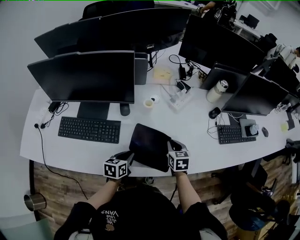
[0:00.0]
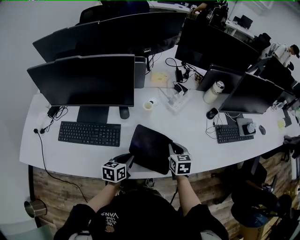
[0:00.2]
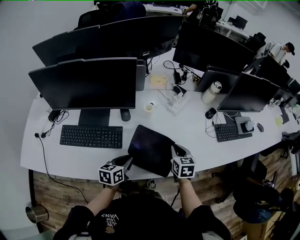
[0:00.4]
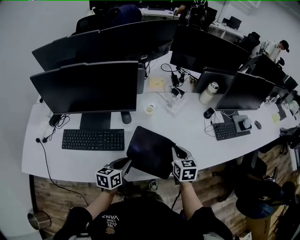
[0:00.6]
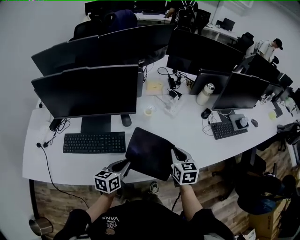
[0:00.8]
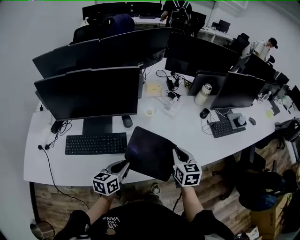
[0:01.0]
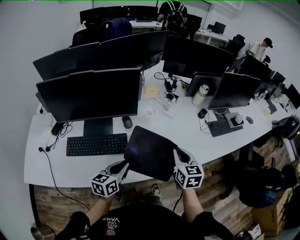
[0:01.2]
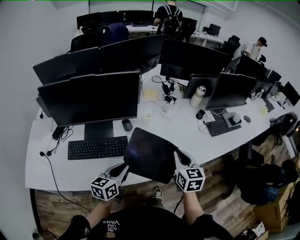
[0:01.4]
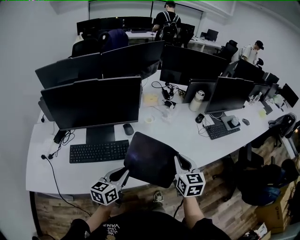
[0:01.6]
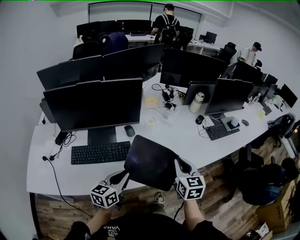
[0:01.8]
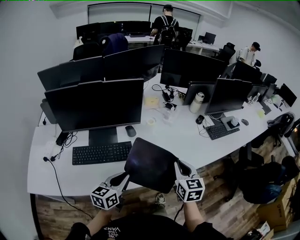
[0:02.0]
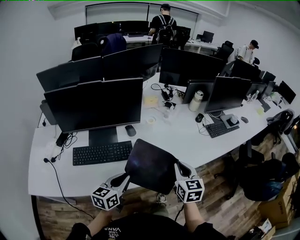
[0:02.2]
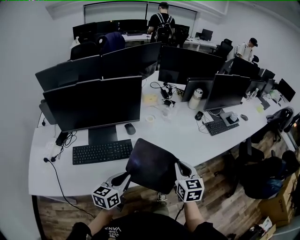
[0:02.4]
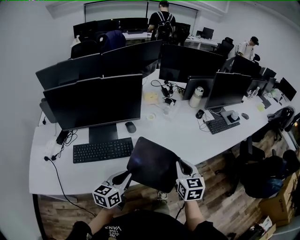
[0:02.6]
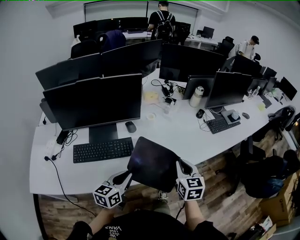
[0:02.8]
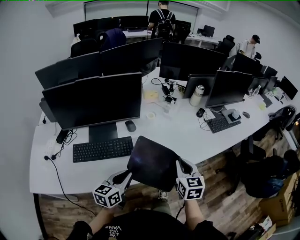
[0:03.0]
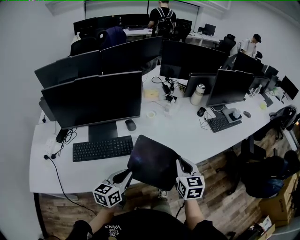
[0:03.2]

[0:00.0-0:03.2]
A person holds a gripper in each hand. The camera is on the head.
0:00.0 to 0:01.6: The left gripper moves upward, backward and to the left, approximately 20 cm, and swivels approximately 30 degrees. The right gripper is displaced upward and backward by roughly 25 cm, and changes its angle by about 30 degrees.
0:01.6 to 0:03.2: The grippers make only small movements.

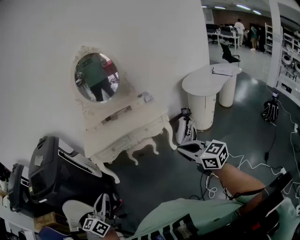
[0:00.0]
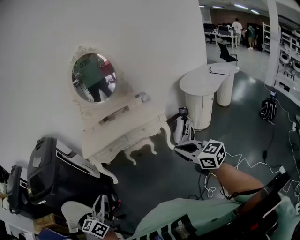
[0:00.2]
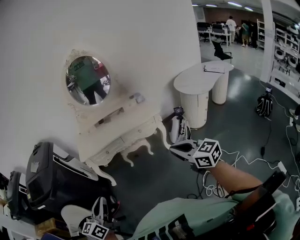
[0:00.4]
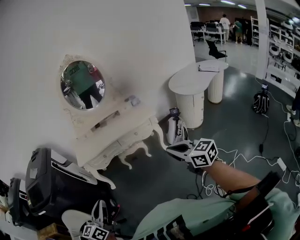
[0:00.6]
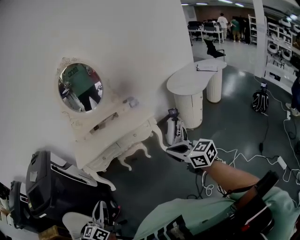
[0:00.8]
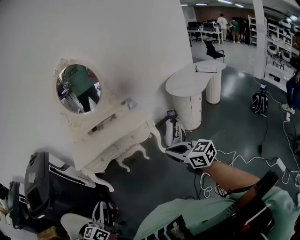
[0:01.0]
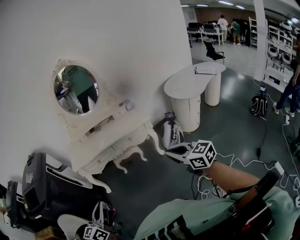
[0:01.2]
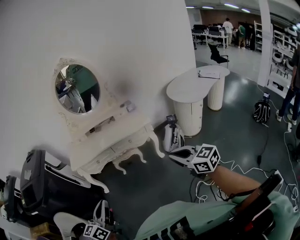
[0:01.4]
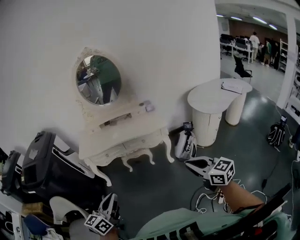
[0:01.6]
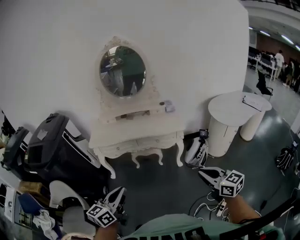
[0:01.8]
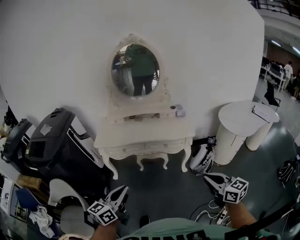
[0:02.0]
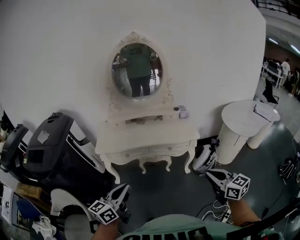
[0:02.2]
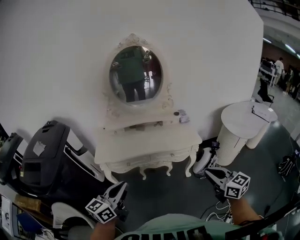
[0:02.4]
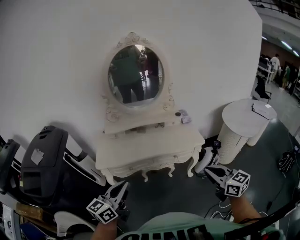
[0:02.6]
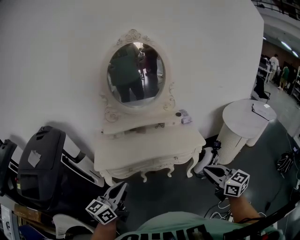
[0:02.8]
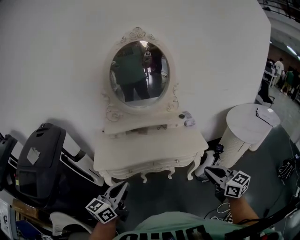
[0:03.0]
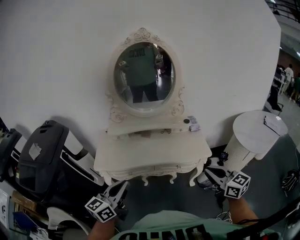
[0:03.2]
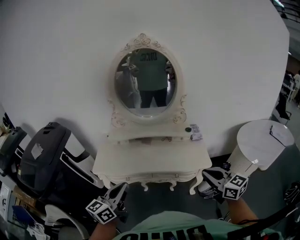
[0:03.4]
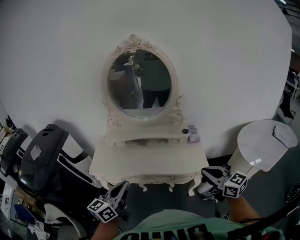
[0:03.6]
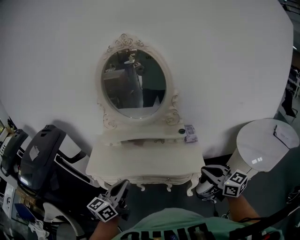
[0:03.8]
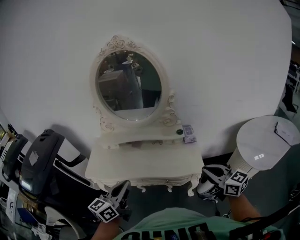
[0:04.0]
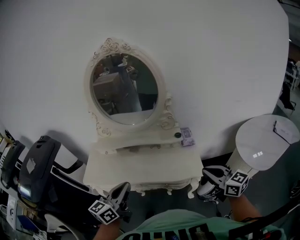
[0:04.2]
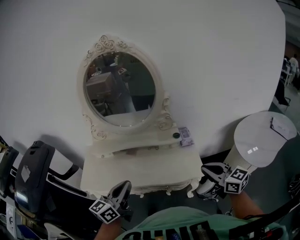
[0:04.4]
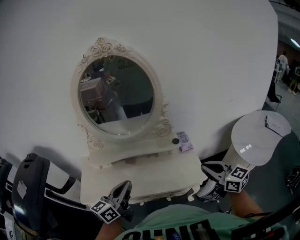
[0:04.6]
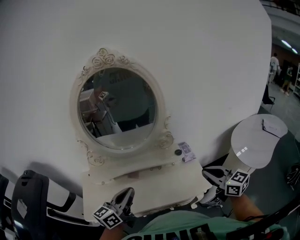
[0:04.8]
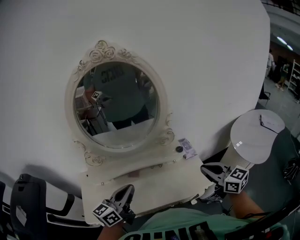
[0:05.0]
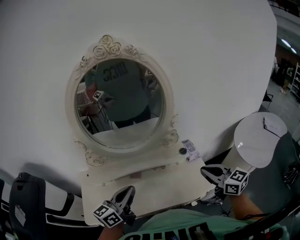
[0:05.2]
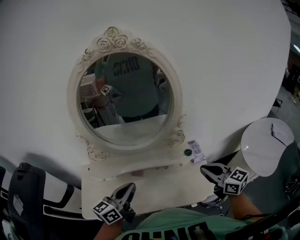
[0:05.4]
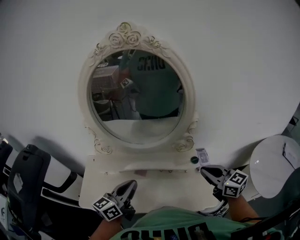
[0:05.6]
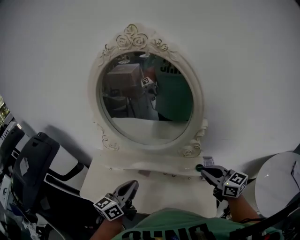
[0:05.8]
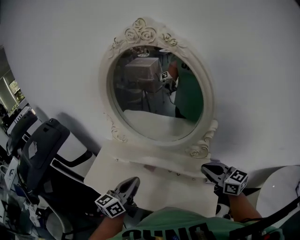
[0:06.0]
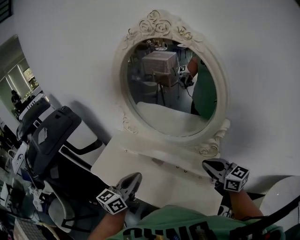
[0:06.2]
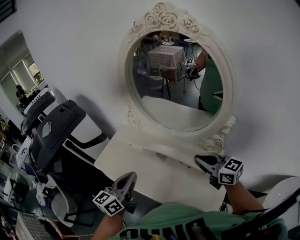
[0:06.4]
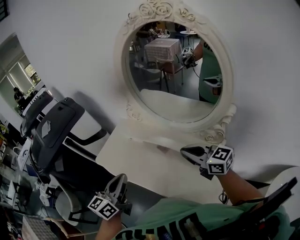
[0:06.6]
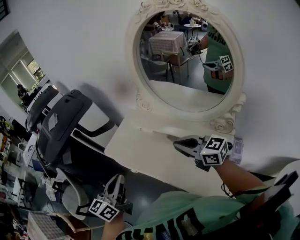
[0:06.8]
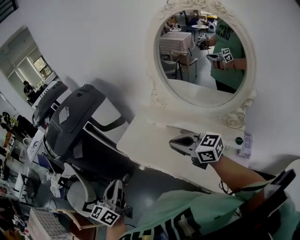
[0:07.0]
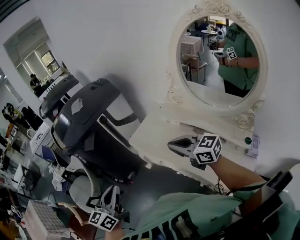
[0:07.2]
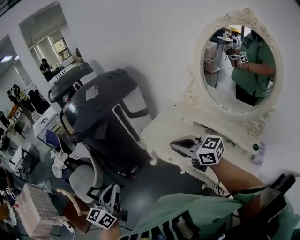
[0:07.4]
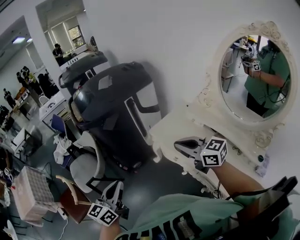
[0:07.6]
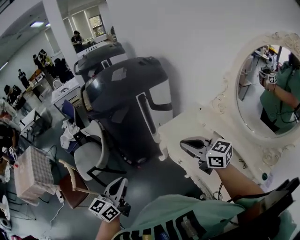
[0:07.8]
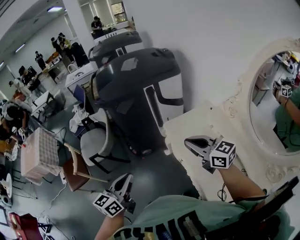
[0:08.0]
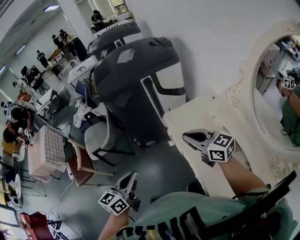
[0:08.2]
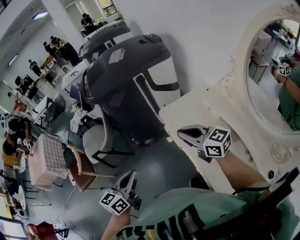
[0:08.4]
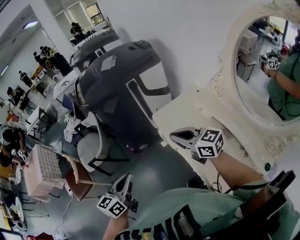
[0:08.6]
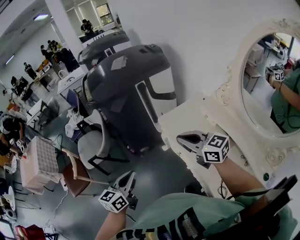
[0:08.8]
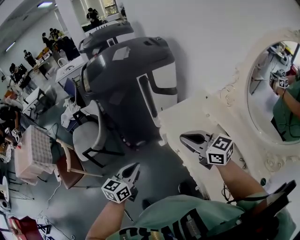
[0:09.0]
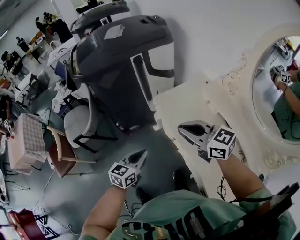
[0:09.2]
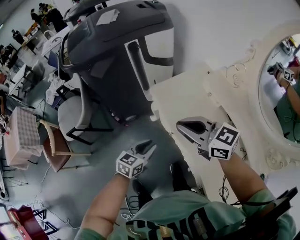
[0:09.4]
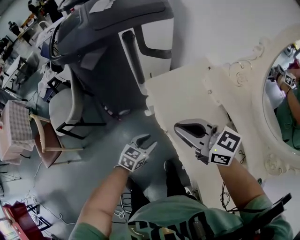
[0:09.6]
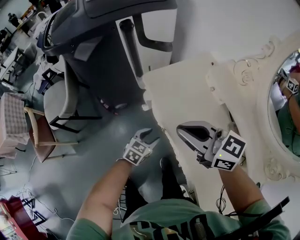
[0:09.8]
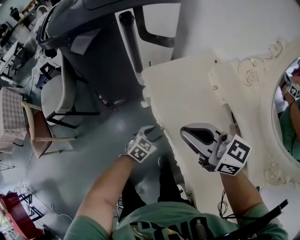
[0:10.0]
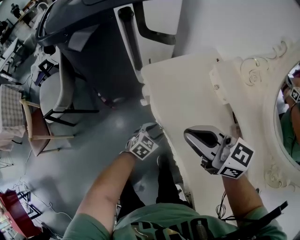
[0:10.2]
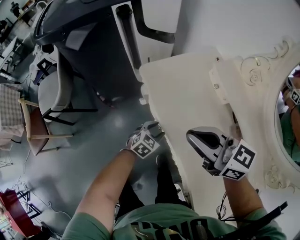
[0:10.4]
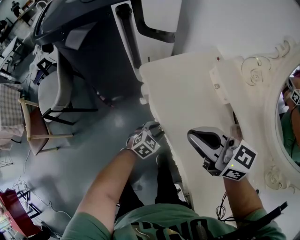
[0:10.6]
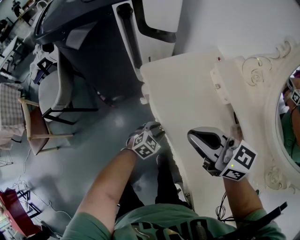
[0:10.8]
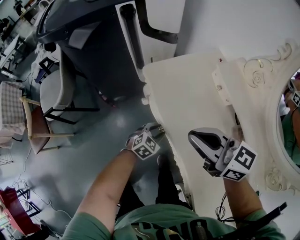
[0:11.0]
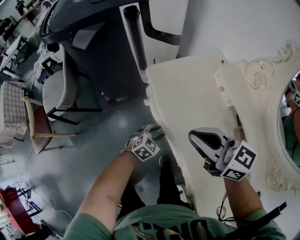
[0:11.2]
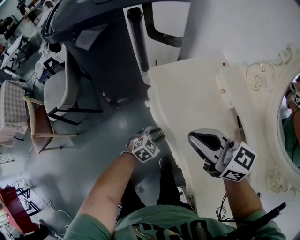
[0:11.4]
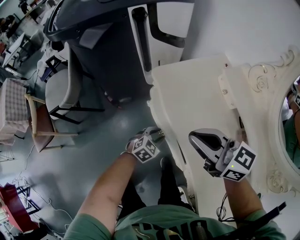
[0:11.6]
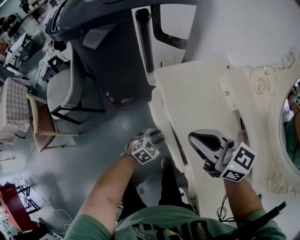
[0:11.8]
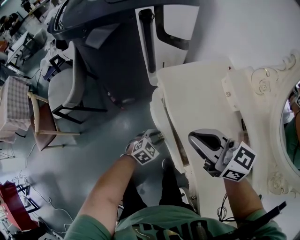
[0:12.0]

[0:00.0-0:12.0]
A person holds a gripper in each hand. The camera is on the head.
0:00.0 to 0:01.6: Both grippers travel together to the right, about 15 cm.
0:01.6 to 0:03.0: The grippers both shift forward and to the left by roughly 35 cm.
0:03.0 to 0:04.4: The left gripper is displaced to the right and forward by about 30 cm, while the right gripper travels forward and to the right by some 30 cm.
0:04.4 to 0:06.0: The right gripper ends up roughly 35 cm from where it was, and turns by roughly 20 degrees, while the left gripper shifts by approximately 20 cm.
0:06.0 to 0:07.6: Both grippers are carried roughly 50 cm. The right gripper swivels about 50 degrees. Meanwhile the left gripper turns by some 50 degrees.
0:07.6 to 0:09.0: The left gripper travels downward and to the right by some 15 cm; the right gripper is displaced downward by roughly 5 cm.
0:09.0 to 0:10.4: The left gripper travels downward and to the right by approximately 40 cm, turns by approximately 40 degrees, and opens its fingers. Meanwhile the right gripper goes some 15 cm downward and to the right.
0:10.4 to 0:12.0: The left gripper goes some 5 cm to the left.

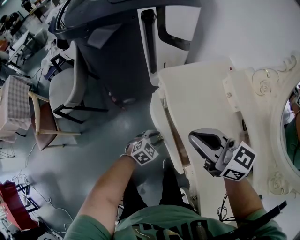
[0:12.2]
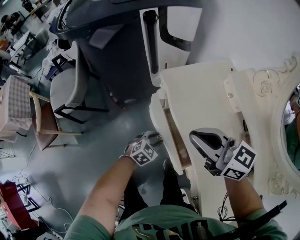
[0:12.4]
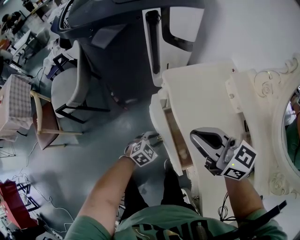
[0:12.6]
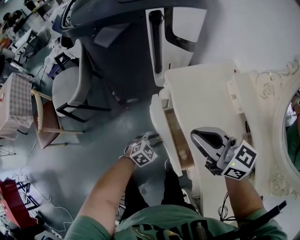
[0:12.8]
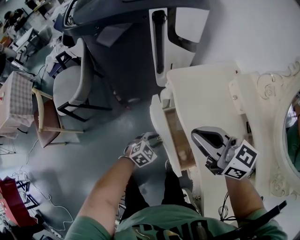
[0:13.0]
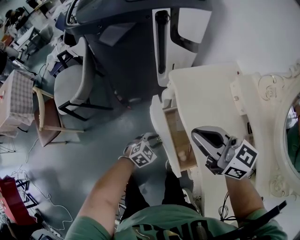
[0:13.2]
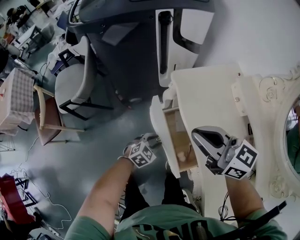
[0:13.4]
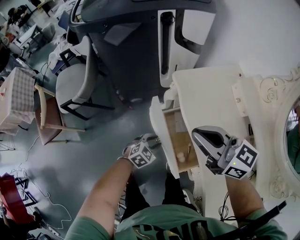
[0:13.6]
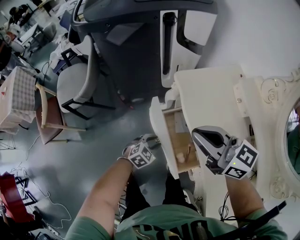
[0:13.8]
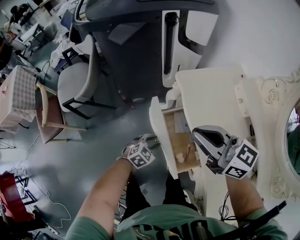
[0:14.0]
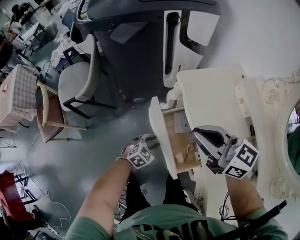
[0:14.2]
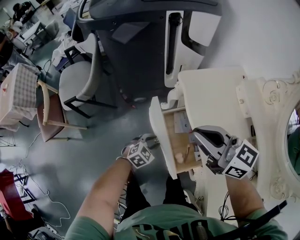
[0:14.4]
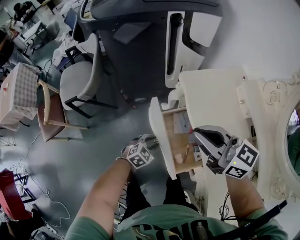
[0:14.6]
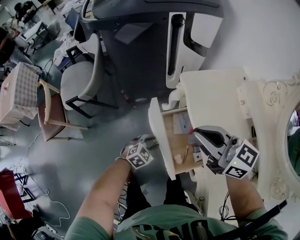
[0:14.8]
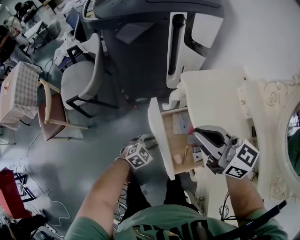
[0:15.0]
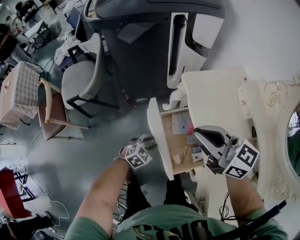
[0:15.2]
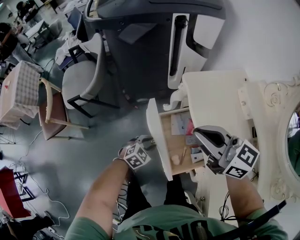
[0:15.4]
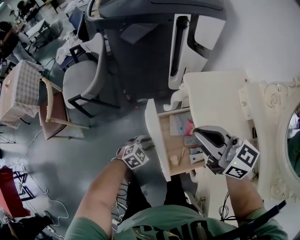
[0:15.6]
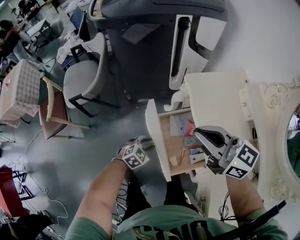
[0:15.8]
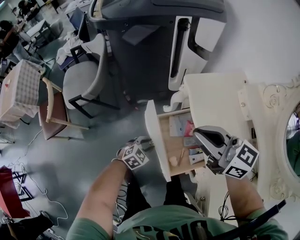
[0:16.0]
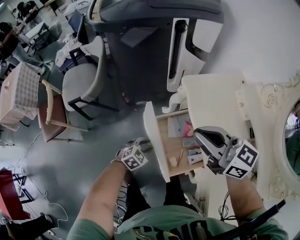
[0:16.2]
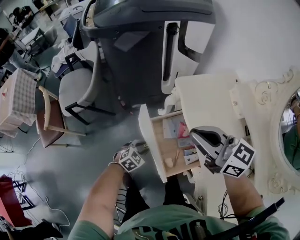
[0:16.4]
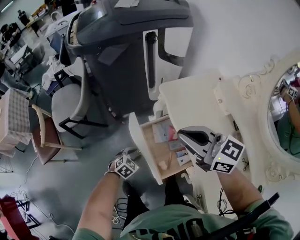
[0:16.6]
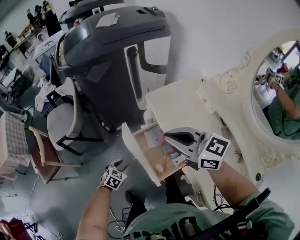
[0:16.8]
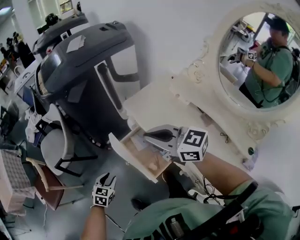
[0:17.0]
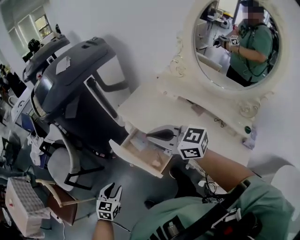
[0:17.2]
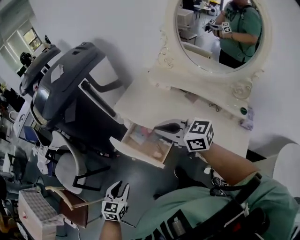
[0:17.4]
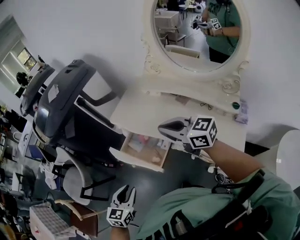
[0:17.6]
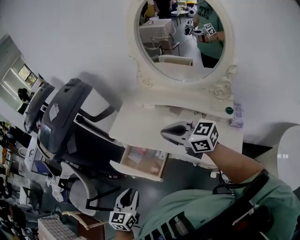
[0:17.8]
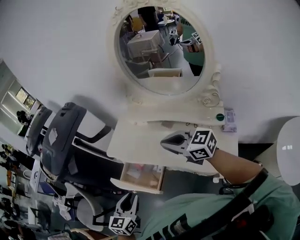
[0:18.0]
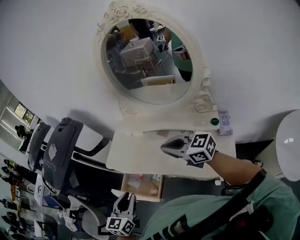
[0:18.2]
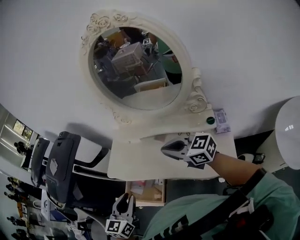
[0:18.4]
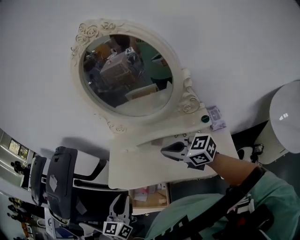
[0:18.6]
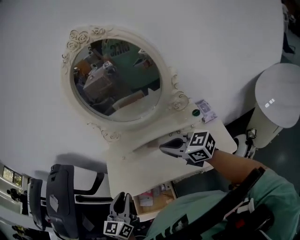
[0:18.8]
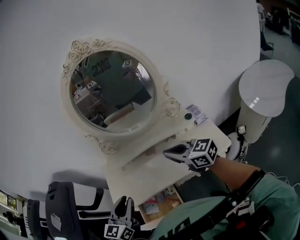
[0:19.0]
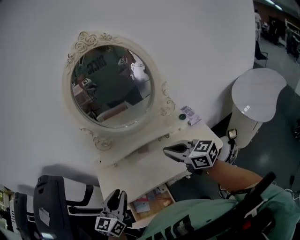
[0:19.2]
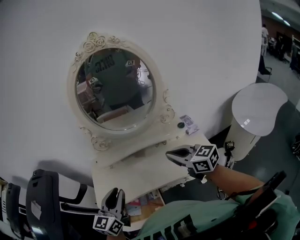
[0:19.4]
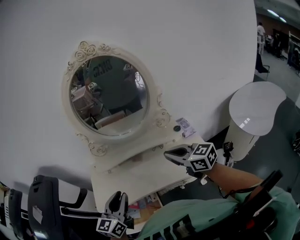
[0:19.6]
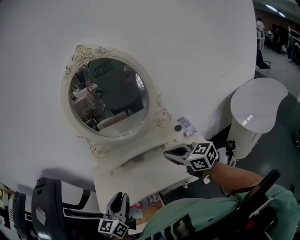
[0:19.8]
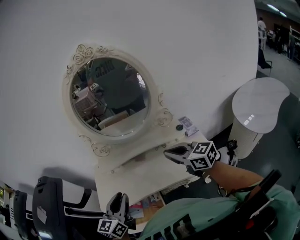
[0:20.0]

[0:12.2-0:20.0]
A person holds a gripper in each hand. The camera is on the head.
0:12.2 to 0:13.8: The left gripper travels to the left by some 5 cm, while the right gripper shifts by roughly 5 cm.
0:13.8 to 0:15.4: The left gripper shifts some 5 cm to the left.
0:15.4 to 0:16.8: The right gripper moves upward, some 5 cm. The left gripper shifts roughly 10 cm to the left.
0:16.8 to 0:18.4: The right gripper moves approximately 35 cm, and turns by roughly 40 degrees. Meanwhile the left gripper goes about 40 cm upward, and tips its fingers upward by about 40 degrees.
0:18.4 to 0:20.0: The right gripper shifts by approximately 5 cm, and rotates roughly 40 degrees, while the left gripper ends up roughly 10 cm from where it was, and rotates about 30 degrees.
